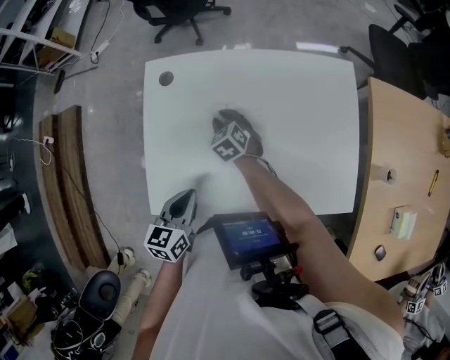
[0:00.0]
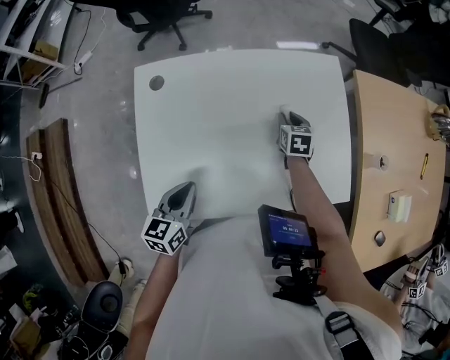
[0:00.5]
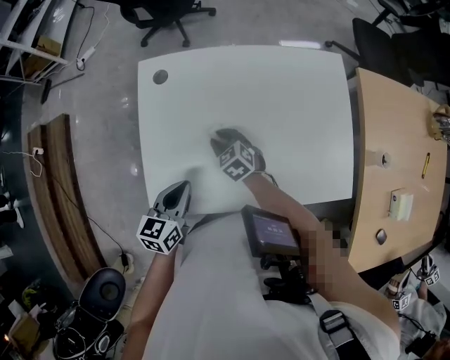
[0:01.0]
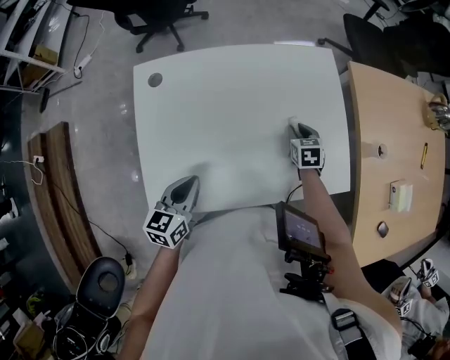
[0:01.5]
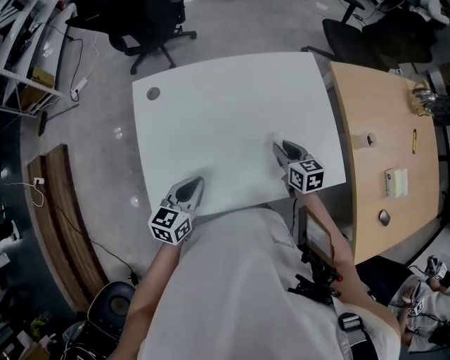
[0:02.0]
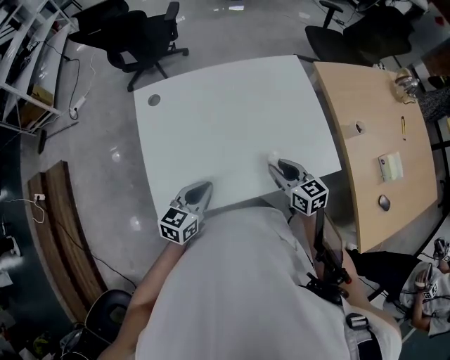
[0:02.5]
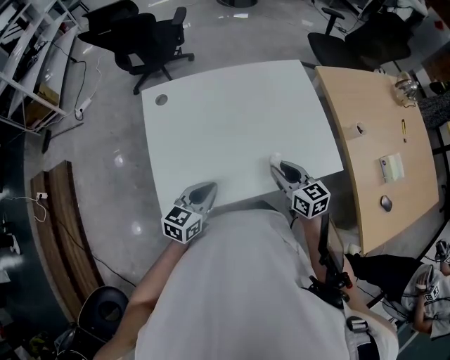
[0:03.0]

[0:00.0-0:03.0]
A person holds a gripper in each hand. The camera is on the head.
0:00.0 to 0:01.5: The right gripper moves left and right over some 30 cm, changing direction 2 times, and rotates roughly 40 degrees.
0:01.5 to 0:03.0: The left gripper heads backward, covering about 5 cm. The right gripper moves backward and upward, about 25 cm, and turns by roughly 30 degrees.

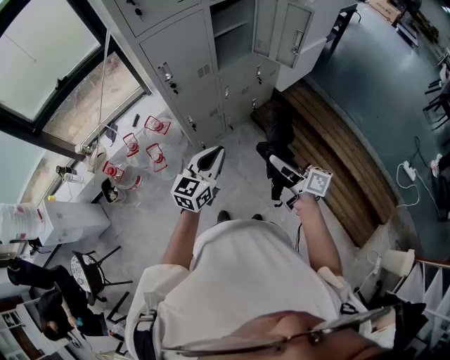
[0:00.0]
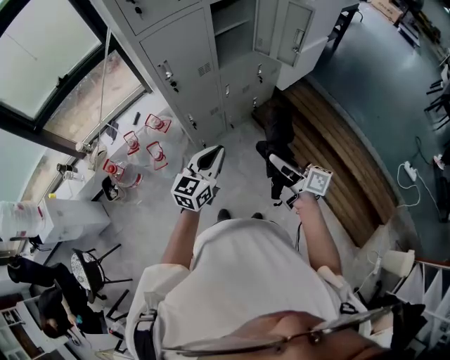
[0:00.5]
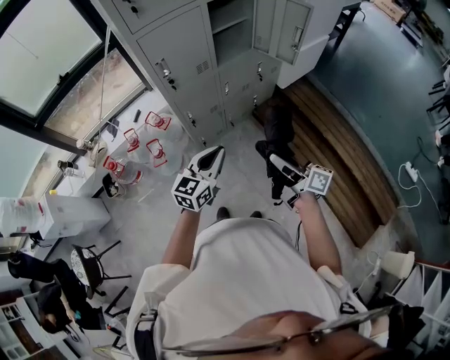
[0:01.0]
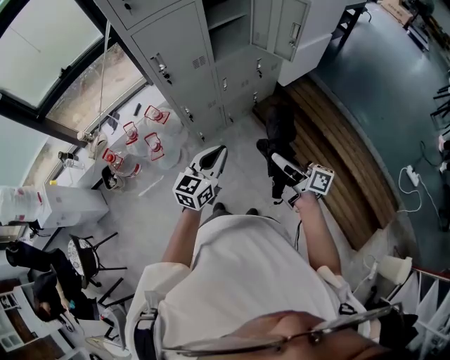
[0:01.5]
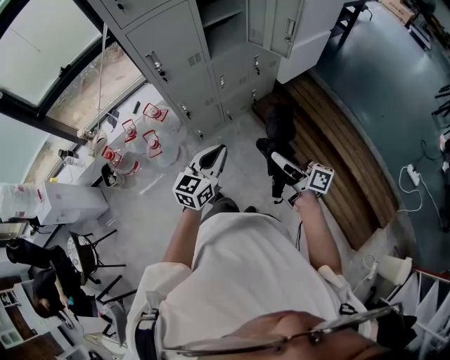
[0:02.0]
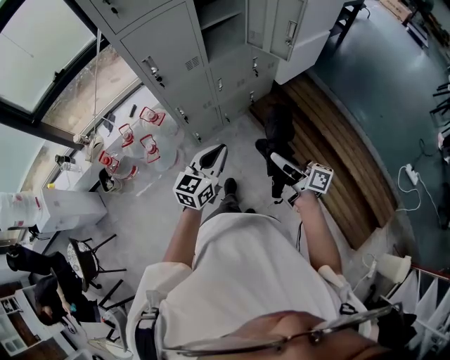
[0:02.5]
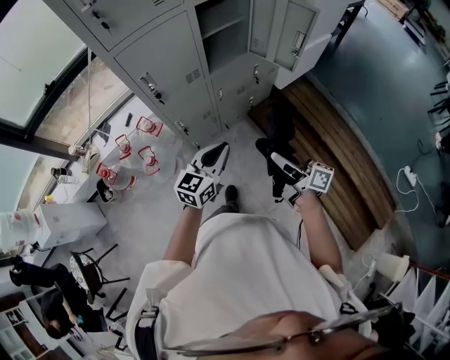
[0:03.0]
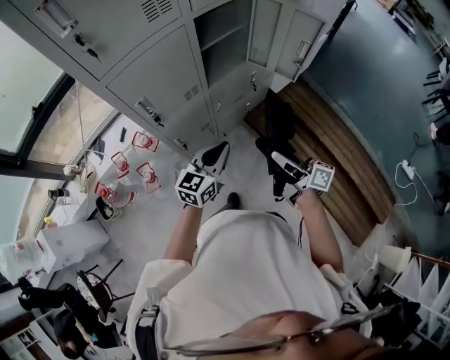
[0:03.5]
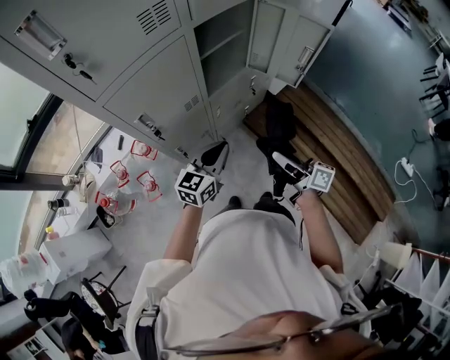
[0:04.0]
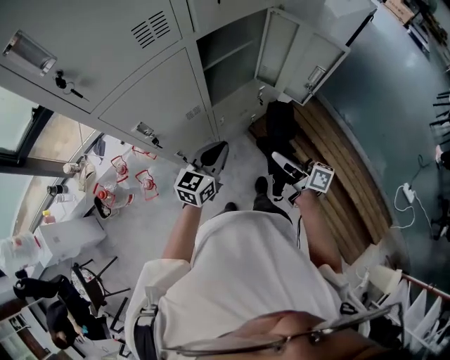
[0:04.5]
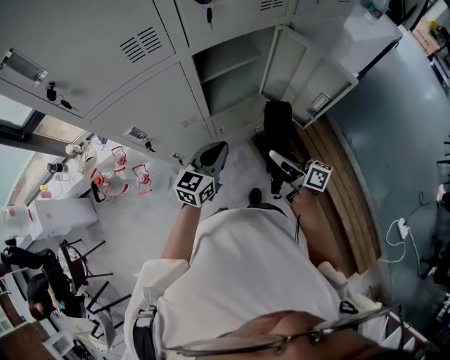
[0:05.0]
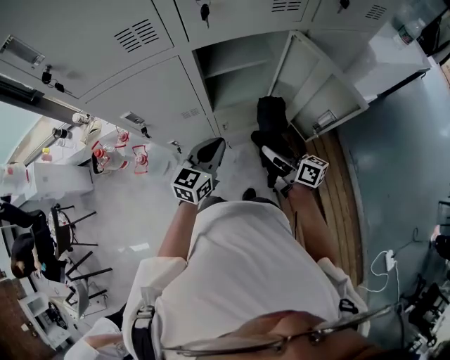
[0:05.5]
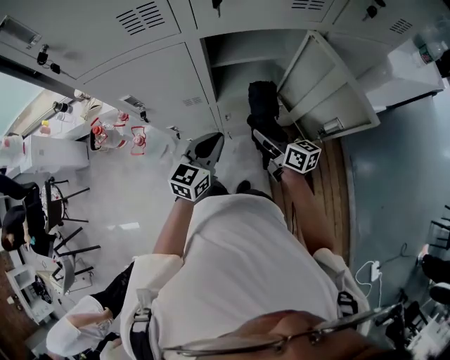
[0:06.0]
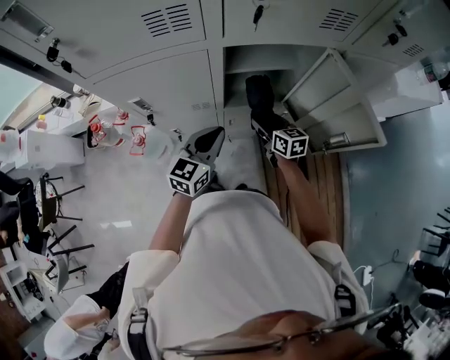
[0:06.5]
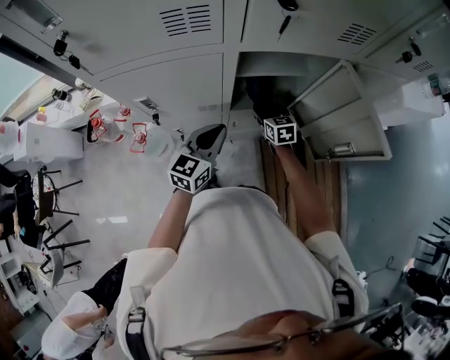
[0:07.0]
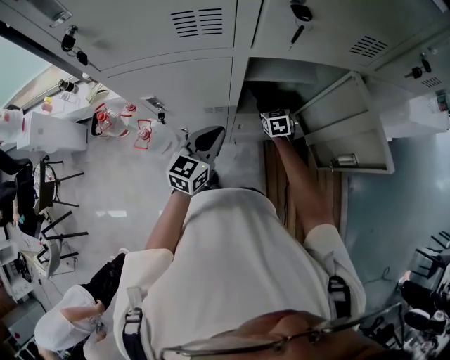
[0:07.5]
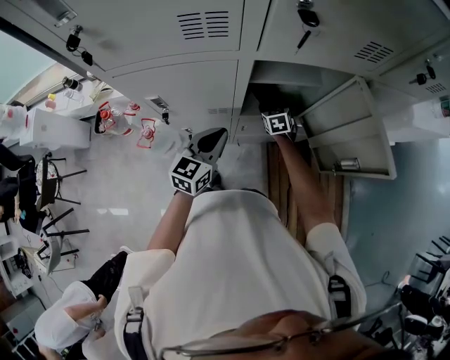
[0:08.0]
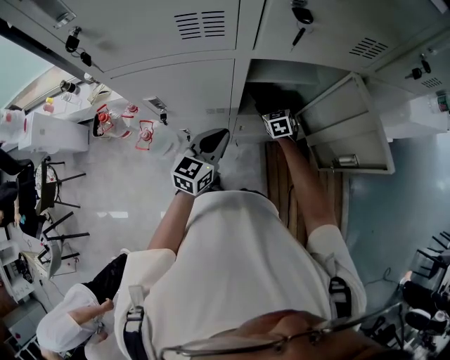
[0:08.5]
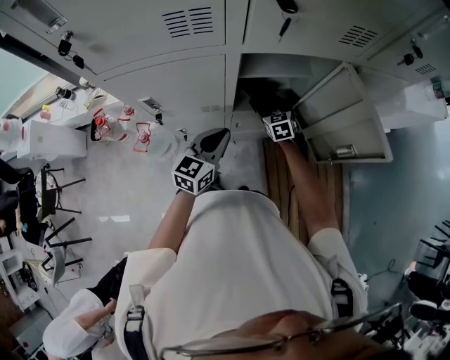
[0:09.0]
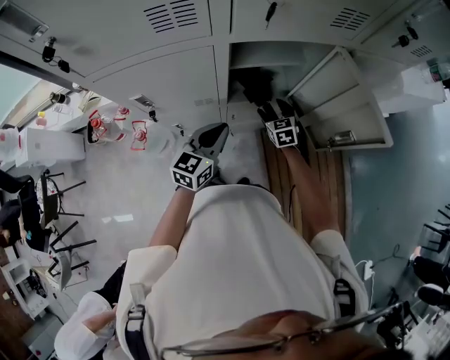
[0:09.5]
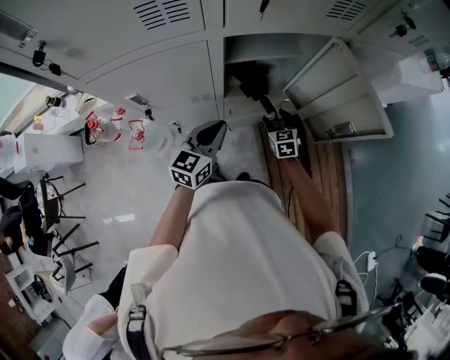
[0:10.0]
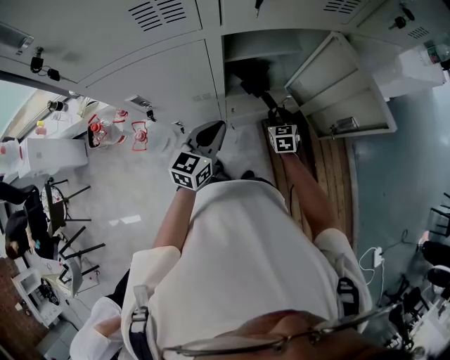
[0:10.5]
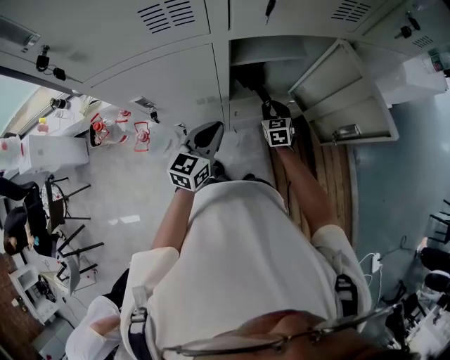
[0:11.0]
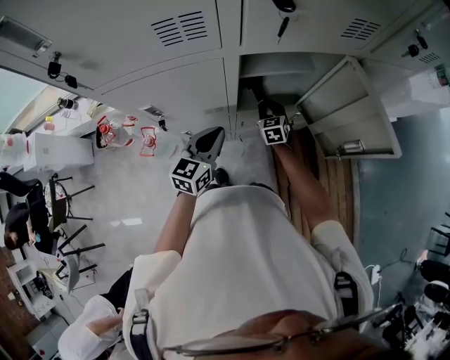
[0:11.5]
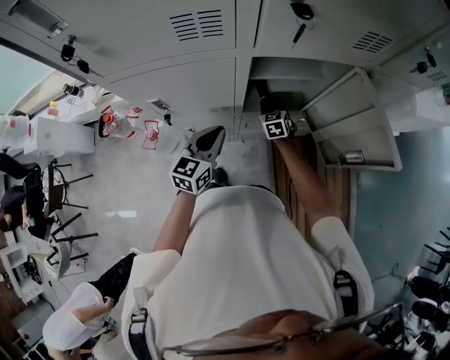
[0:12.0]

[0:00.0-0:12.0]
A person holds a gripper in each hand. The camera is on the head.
0:00.0 to 0:02.0: Both grippers move to the right, roughly 10 cm.
0:02.0 to 0:04.0: Both grippers move forward, approximately 25 cm.
0:04.0 to 0:06.0: The right gripper moves some 25 cm, and turns by some 40 degrees. Meanwhile the left gripper moves about 15 cm, and turns by about 30 degrees.
0:06.0 to 0:08.0: The right gripper shifts roughly 25 cm forward and downward, and points its fingers some 30 degrees further downward, while the left gripper is displaced to the left and forward by some 10 cm.
0:08.0 to 0:10.0: The right gripper heads backward and to the right, covering approximately 15 cm.
0:10.0 to 0:12.0: The left gripper moves to the left, some 5 cm; the right gripper goes roughly 15 cm to the left and forward, and closes.

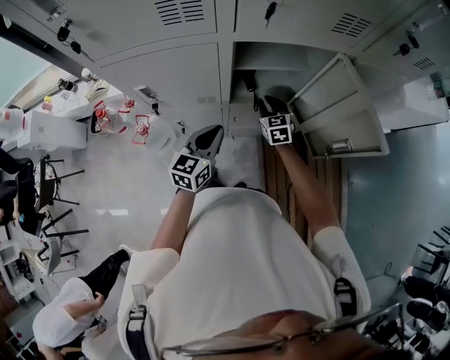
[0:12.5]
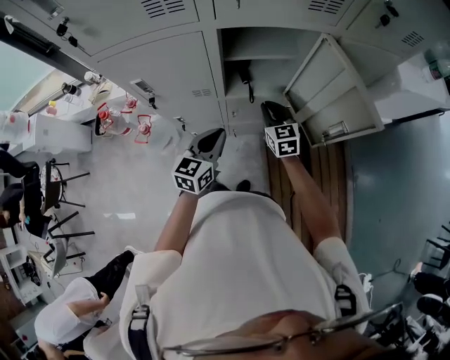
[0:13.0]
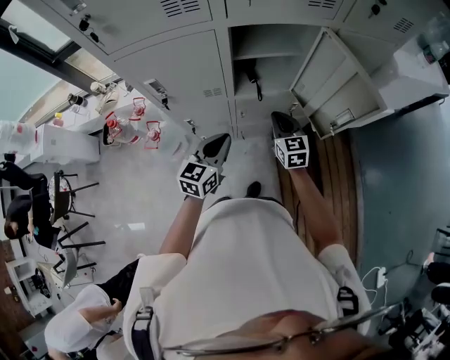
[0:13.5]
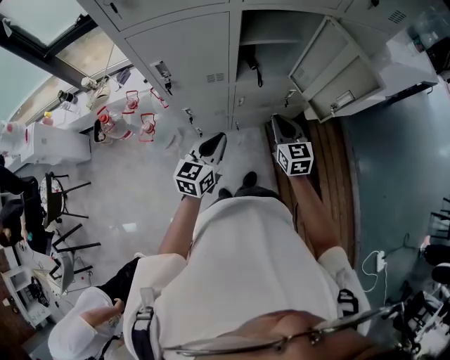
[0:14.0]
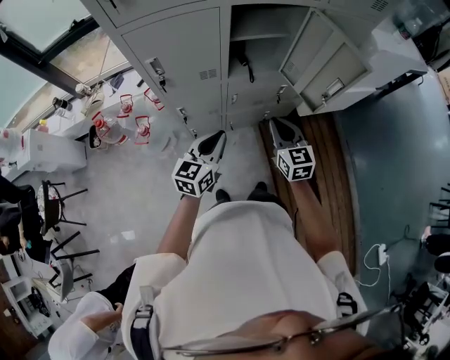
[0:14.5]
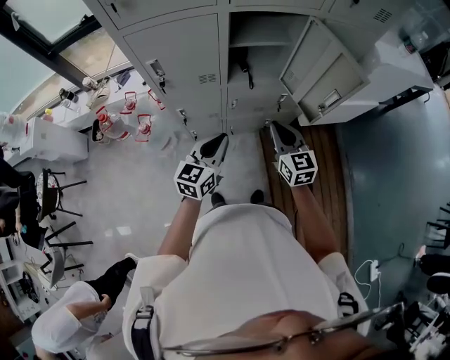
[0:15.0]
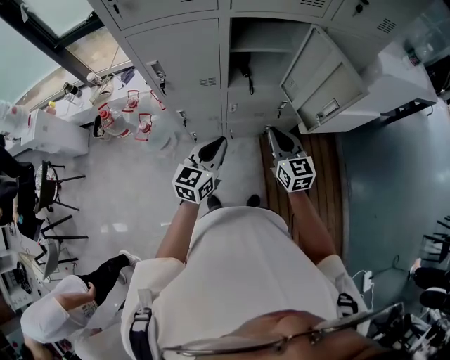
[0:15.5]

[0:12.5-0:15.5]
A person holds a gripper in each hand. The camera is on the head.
0:12.5 to 0:14.0: The right gripper heads backward and upward, covering about 25 cm. Meanwhile the left gripper moves backward, about 15 cm.
0:14.0 to 0:15.5: The left gripper goes some 5 cm to the right, while the right gripper changes place by approximately 5 cm.

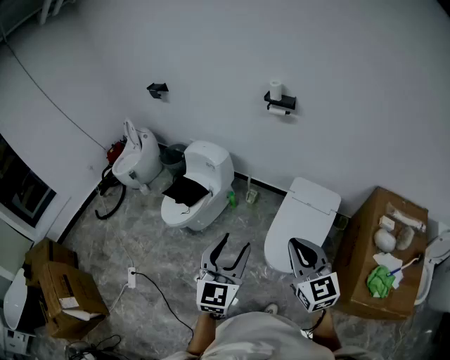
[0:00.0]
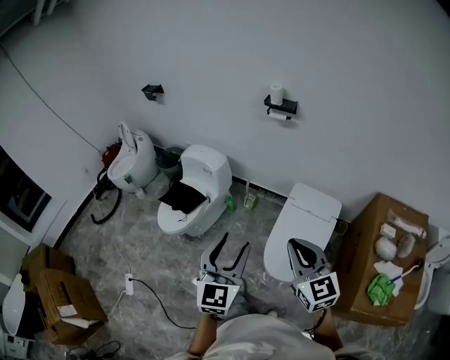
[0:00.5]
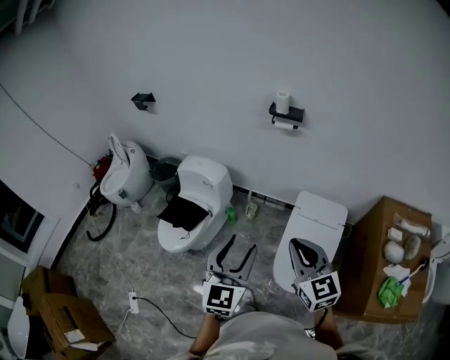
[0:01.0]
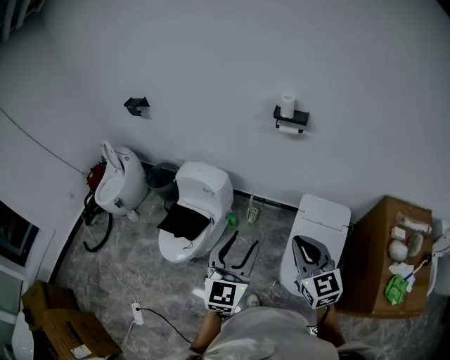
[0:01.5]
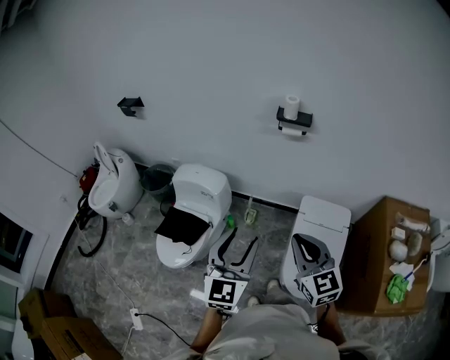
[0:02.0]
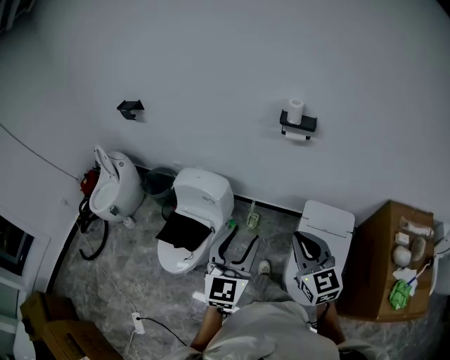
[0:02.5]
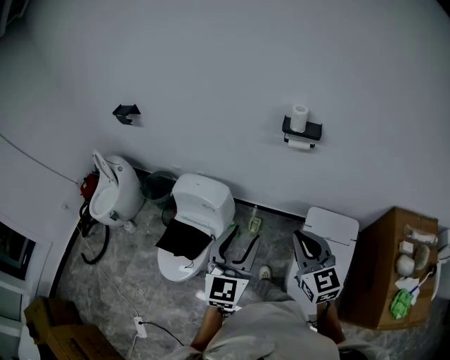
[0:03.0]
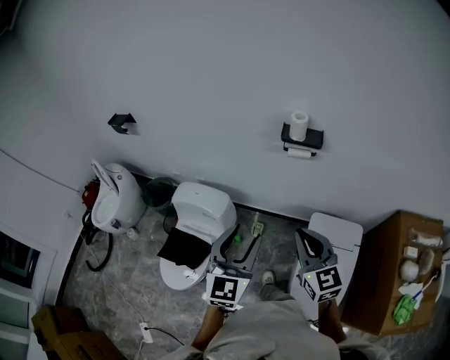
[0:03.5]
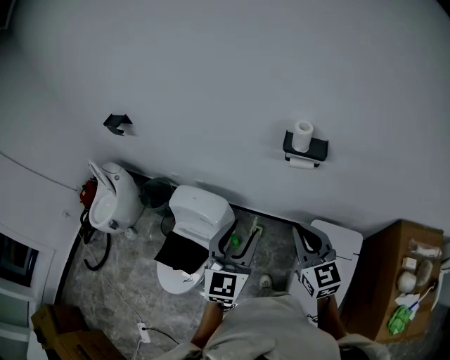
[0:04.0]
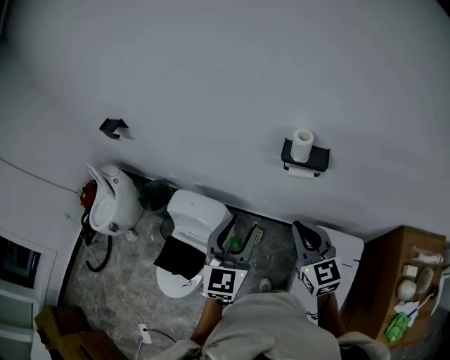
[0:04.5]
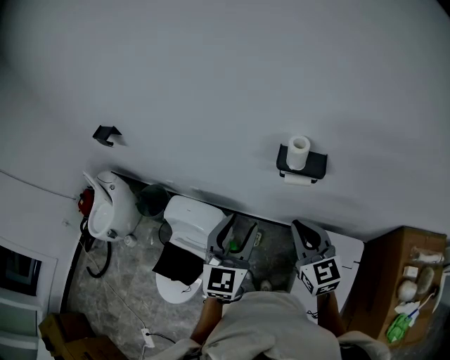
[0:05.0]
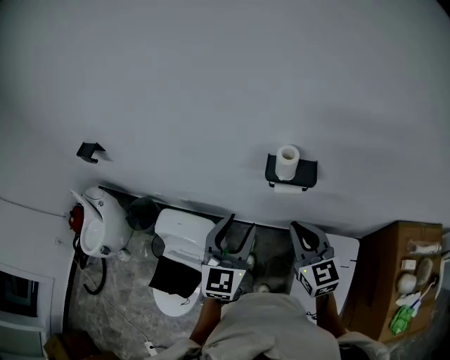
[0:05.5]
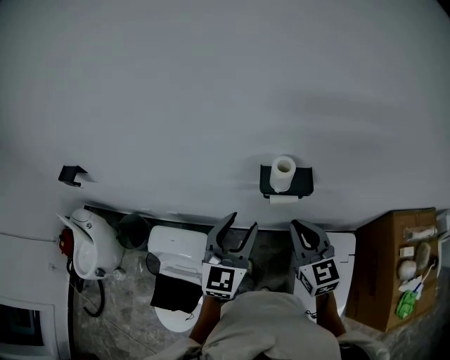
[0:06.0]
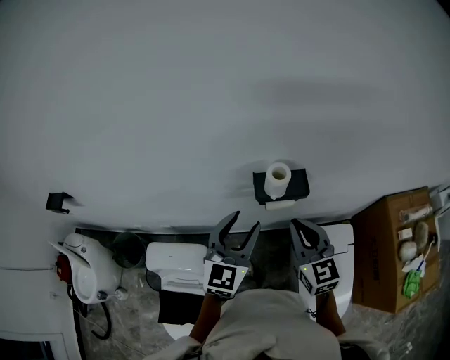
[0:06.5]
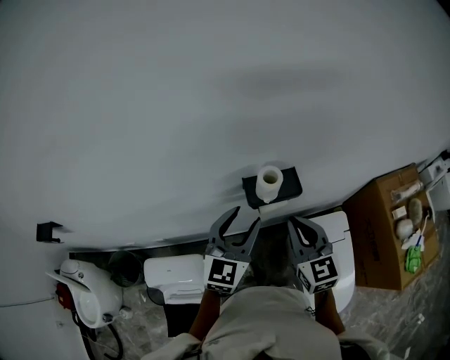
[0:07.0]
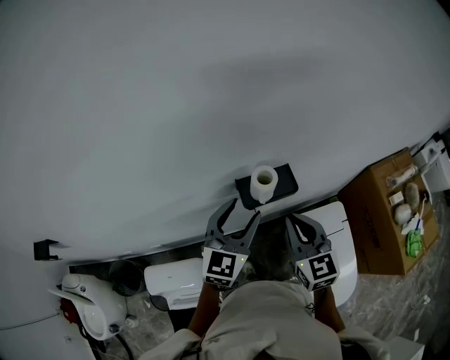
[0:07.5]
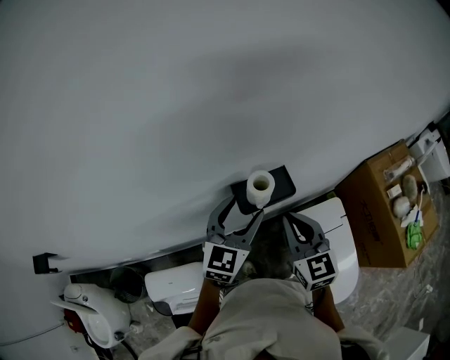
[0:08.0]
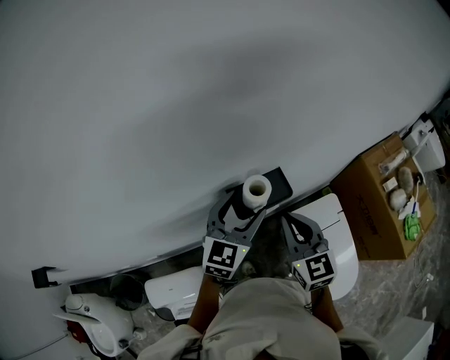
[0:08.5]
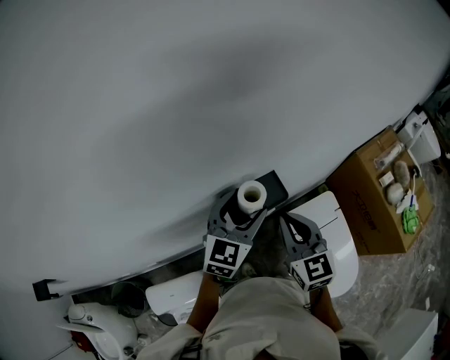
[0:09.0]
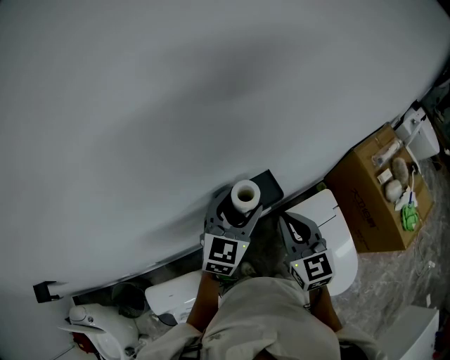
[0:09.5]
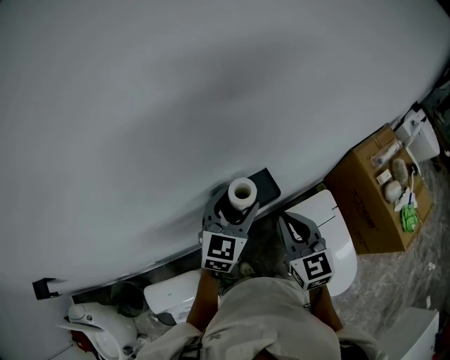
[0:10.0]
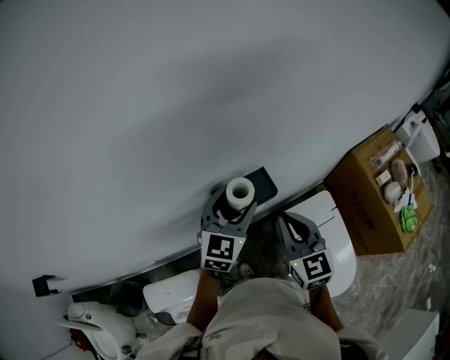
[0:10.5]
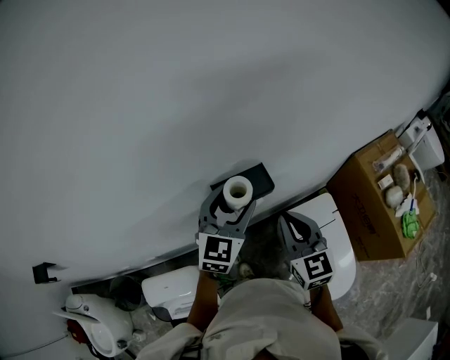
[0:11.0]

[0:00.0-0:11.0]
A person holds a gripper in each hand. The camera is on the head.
0:00.0 to 0:02.0: Both grippers move forward and to the left, about 30 cm.
0:02.0 to 0:03.5: The grippers both shift forward by roughly 20 cm.
0:03.5 to 0:05.5: Both grippers move forward, approximately 20 cm.
0:05.5 to 0:07.5: The left gripper changes place by about 15 cm, and turns by approximately 40 degrees. Meanwhile the right gripper shifts by some 10 cm, and changes its angle by roughly 30 degrees.
0:07.5 to 0:09.0: The left gripper shifts approximately 5 cm forward.
0:09.0 to 0:11.0: The right gripper changes place by approximately 5 cm.
